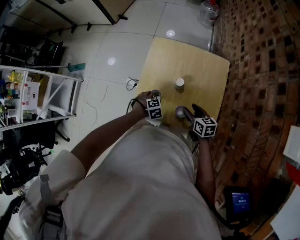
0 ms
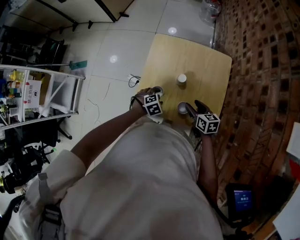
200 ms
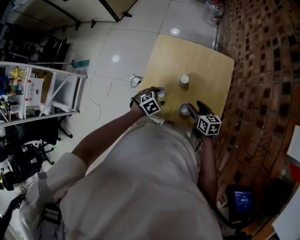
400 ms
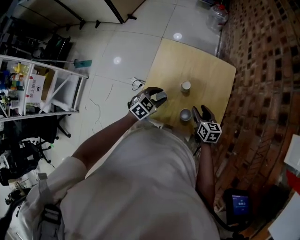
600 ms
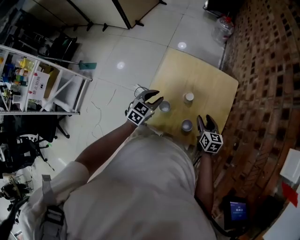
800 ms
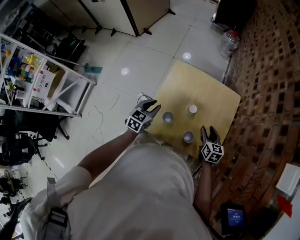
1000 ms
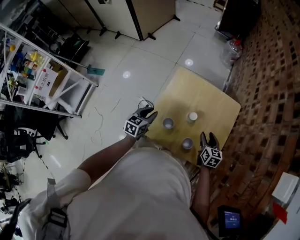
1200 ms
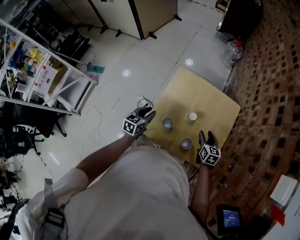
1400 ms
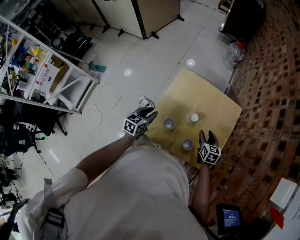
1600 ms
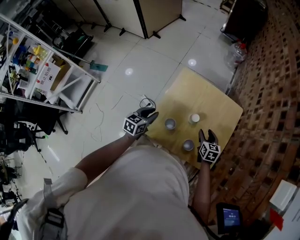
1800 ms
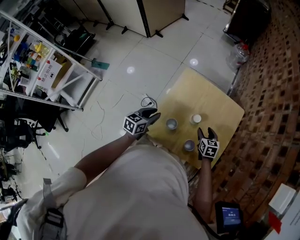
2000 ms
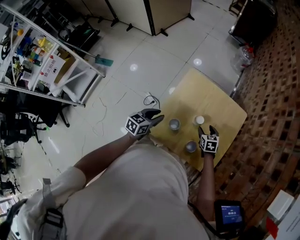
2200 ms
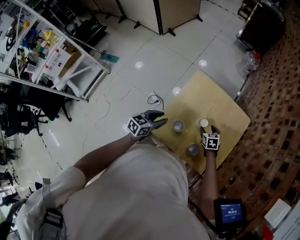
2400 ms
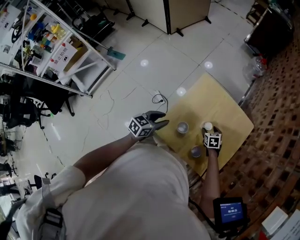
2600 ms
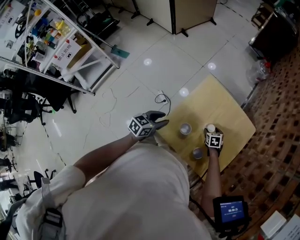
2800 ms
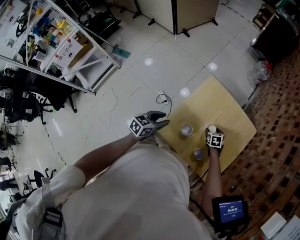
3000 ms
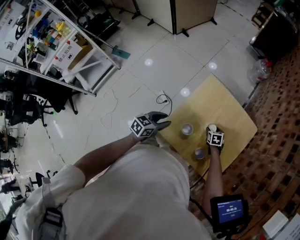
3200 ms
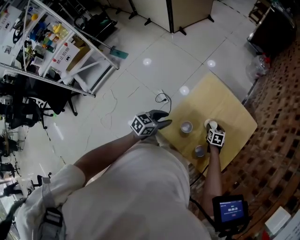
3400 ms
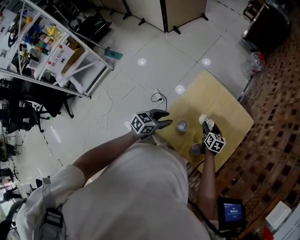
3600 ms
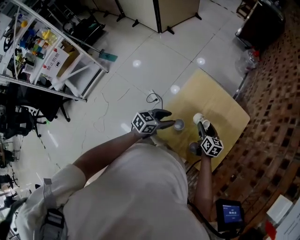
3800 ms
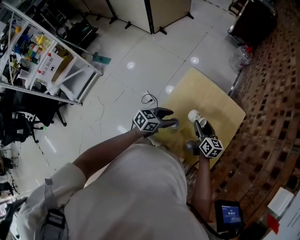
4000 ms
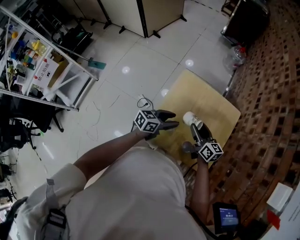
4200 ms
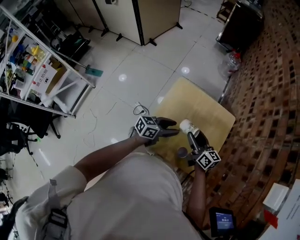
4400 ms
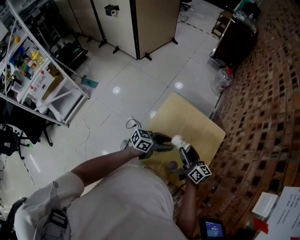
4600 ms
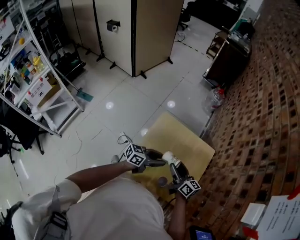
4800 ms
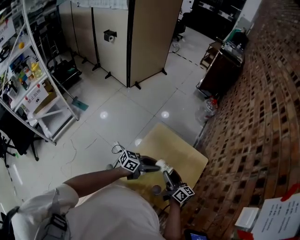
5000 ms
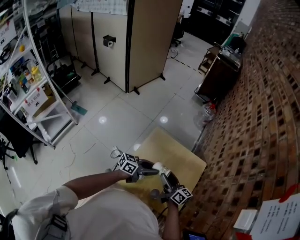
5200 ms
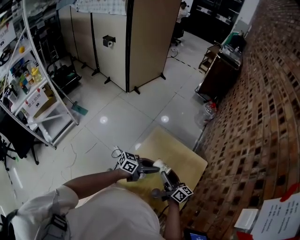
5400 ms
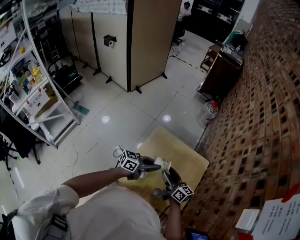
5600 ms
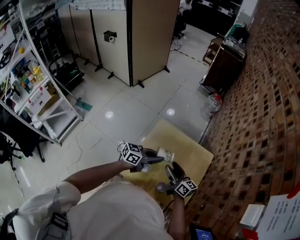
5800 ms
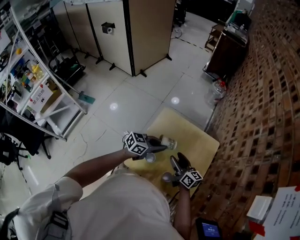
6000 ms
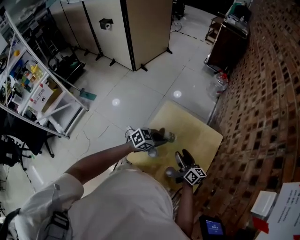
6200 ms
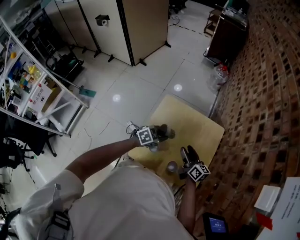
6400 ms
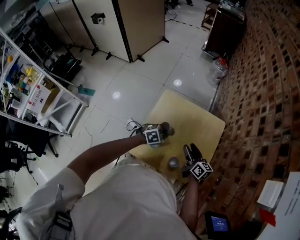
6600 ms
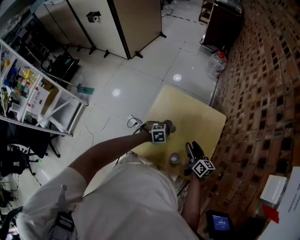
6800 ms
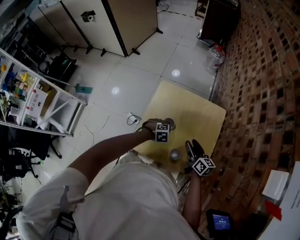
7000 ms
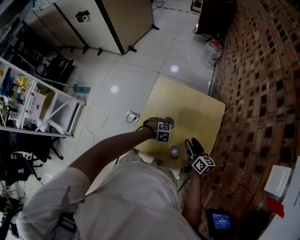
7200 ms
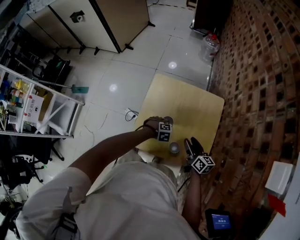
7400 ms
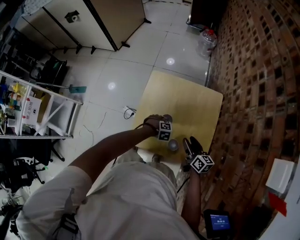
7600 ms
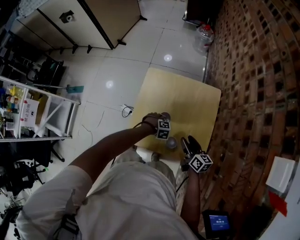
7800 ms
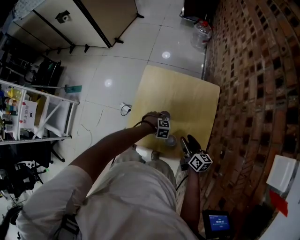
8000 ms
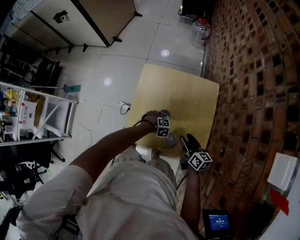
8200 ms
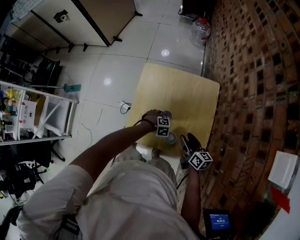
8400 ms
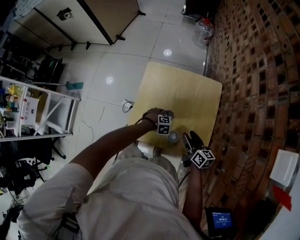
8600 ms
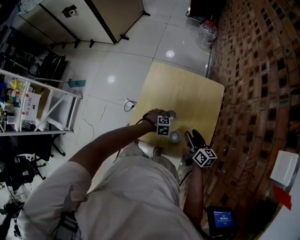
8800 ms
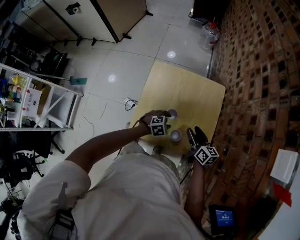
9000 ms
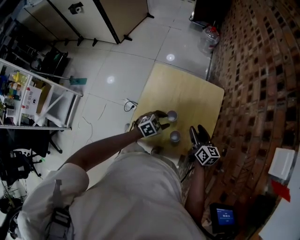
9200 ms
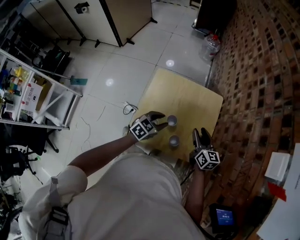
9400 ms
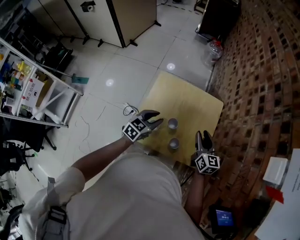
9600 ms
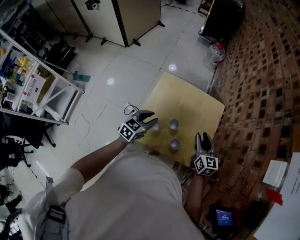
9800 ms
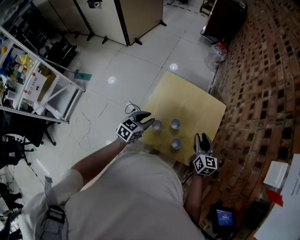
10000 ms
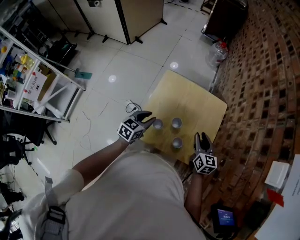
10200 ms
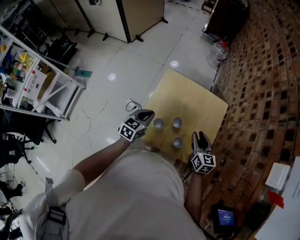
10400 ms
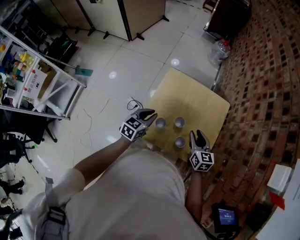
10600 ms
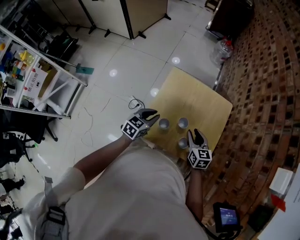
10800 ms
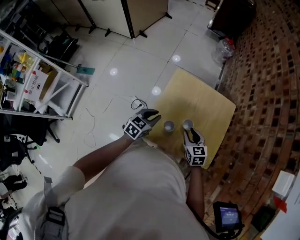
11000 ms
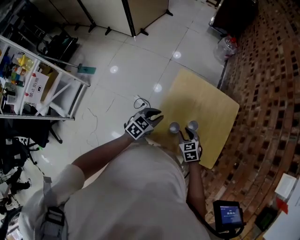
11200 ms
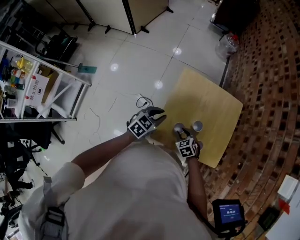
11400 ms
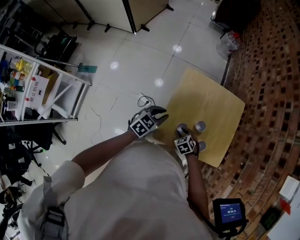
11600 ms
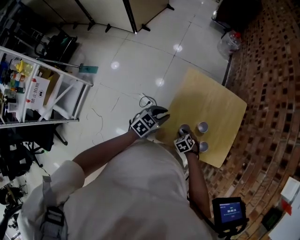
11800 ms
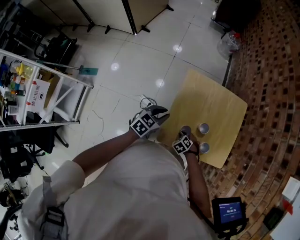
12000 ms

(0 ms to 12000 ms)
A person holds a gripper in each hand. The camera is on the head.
0 ms - 1600 ms: The left gripper shifts roughly 15 cm upward, points its fingers some 40 degrees further upward, and closes. Meanwhile the right gripper changes place by some 10 cm.
1600 ms - 3000 ms: The left gripper moves roughly 5 cm, while the right gripper goes roughly 20 cm downward, forward and to the left, and swivels approximately 30 degrees.
3000 ms - 4400 ms: The left gripper goes approximately 15 cm to the right, and turns by roughly 30 degrees. Meanwhile the right gripper shifts roughly 25 cm upward, and tips its fingers upward by about 50 degrees.
4400 ms - 6000 ms: The left gripper moves about 5 cm, and closes up.
6000 ms - 7600 ms: The left gripper shifts some 25 cm downward, and tips its fingers downward by approximately 60 degrees. Meanwhile the right gripper changes place by roughly 15 cm, and swivels roughly 20 degrees.
7600 ms - 9000 ms: The left gripper heads upward, covering approximately 5 cm, turns by some 30 degrees, and opens.
9000 ms - 10400 ms: The left gripper travels to the left and upward by about 25 cm, points its fingers approximately 30 degrees further upward, and closes up. Meanwhile the right gripper moves upward, about 5 cm, and turns by approximately 20 degrees.
10400 ms - 12000 ms: The left gripper moves approximately 10 cm, and turns by approximately 20 degrees. Meanwhile the right gripper is displaced downward by approximately 25 cm, and tips its fingers downward by about 50 degrees.

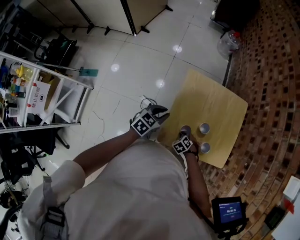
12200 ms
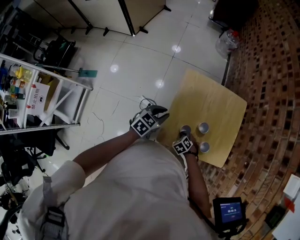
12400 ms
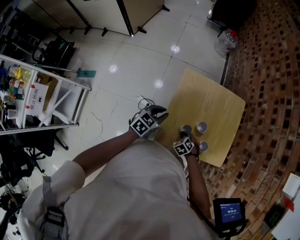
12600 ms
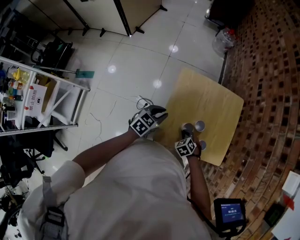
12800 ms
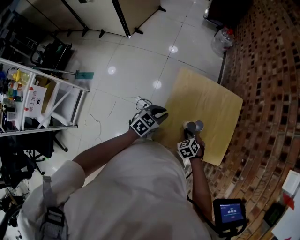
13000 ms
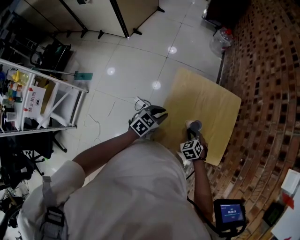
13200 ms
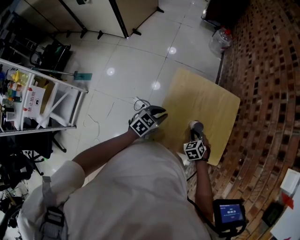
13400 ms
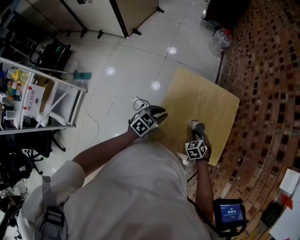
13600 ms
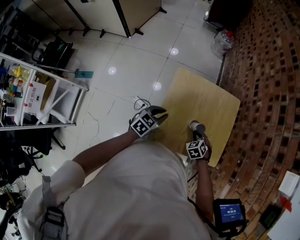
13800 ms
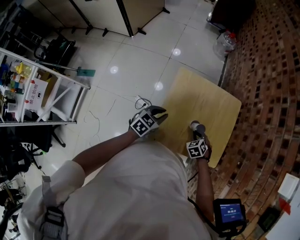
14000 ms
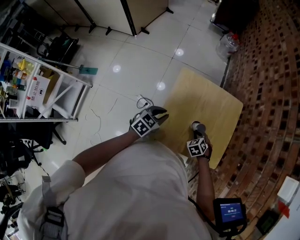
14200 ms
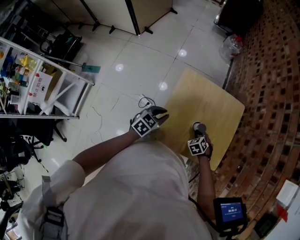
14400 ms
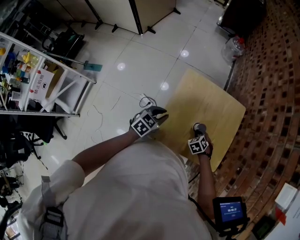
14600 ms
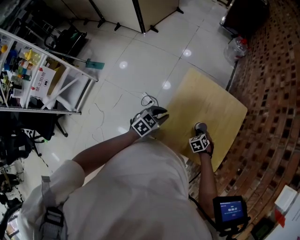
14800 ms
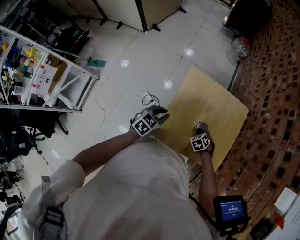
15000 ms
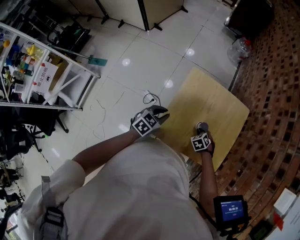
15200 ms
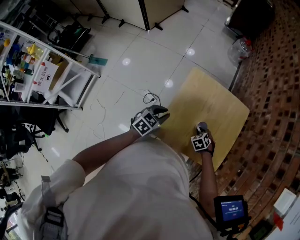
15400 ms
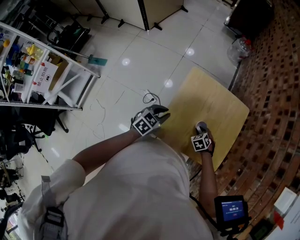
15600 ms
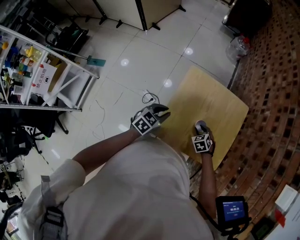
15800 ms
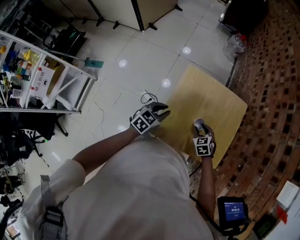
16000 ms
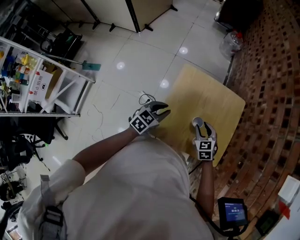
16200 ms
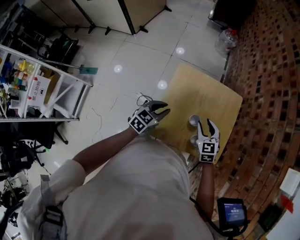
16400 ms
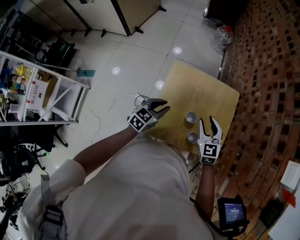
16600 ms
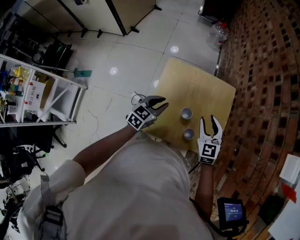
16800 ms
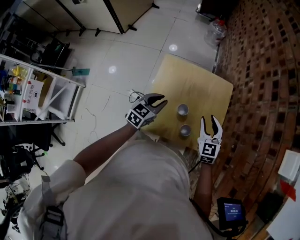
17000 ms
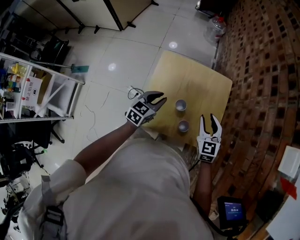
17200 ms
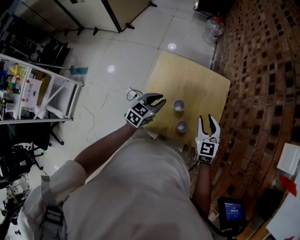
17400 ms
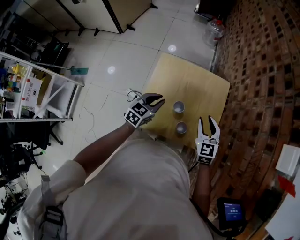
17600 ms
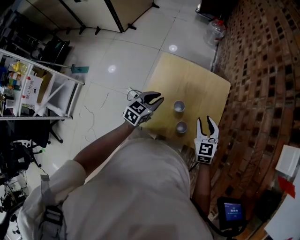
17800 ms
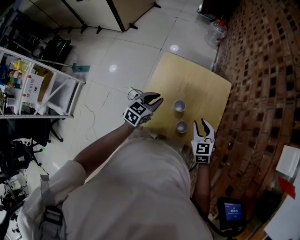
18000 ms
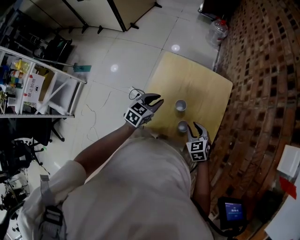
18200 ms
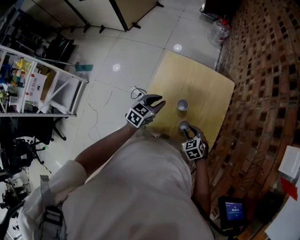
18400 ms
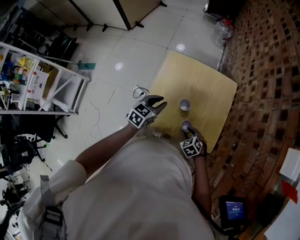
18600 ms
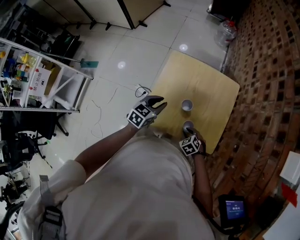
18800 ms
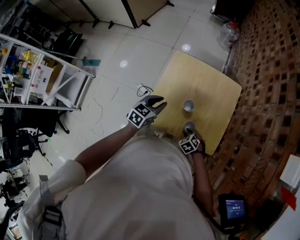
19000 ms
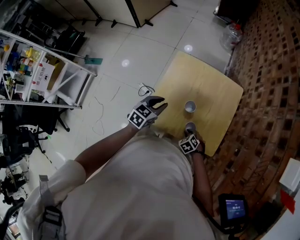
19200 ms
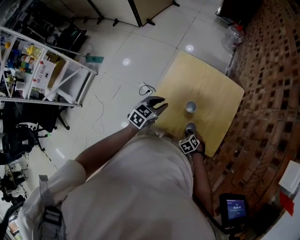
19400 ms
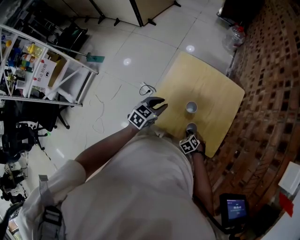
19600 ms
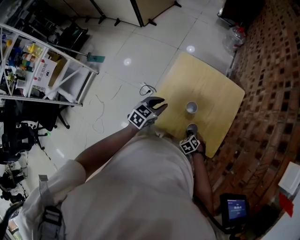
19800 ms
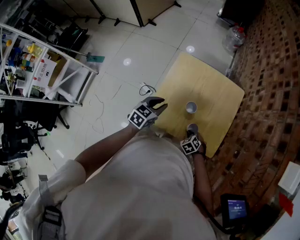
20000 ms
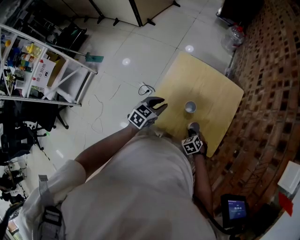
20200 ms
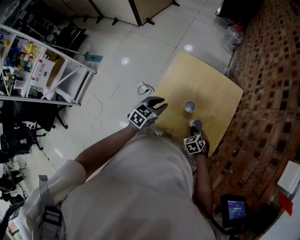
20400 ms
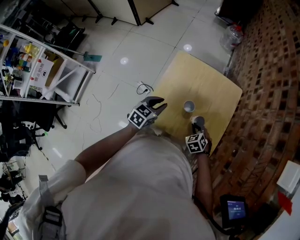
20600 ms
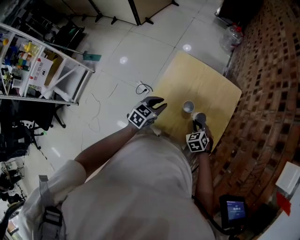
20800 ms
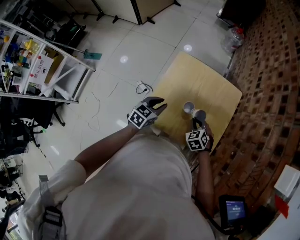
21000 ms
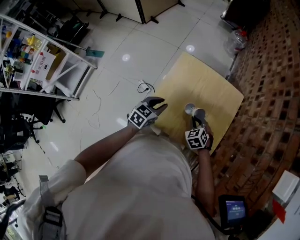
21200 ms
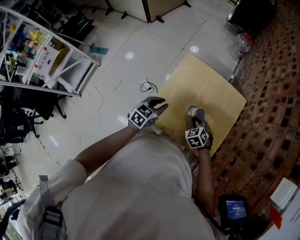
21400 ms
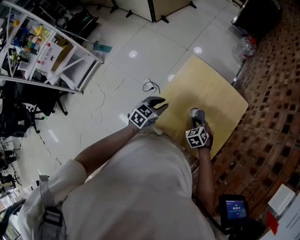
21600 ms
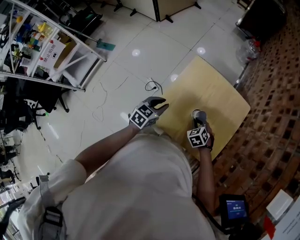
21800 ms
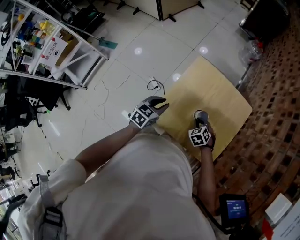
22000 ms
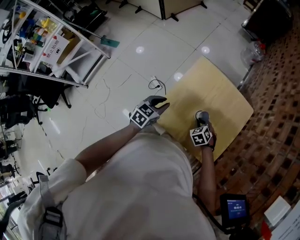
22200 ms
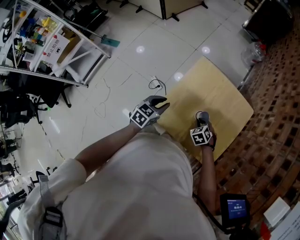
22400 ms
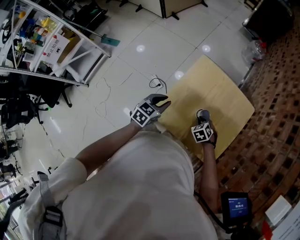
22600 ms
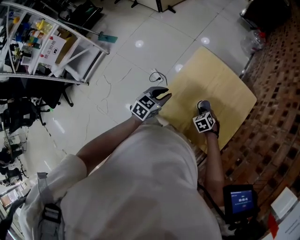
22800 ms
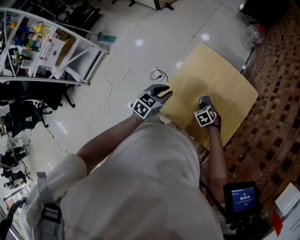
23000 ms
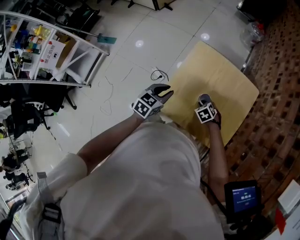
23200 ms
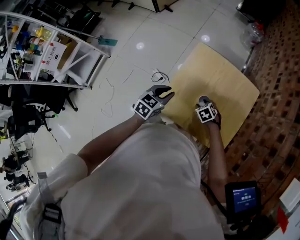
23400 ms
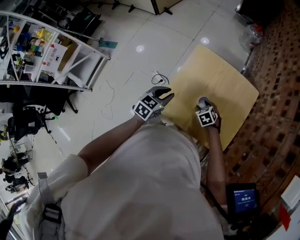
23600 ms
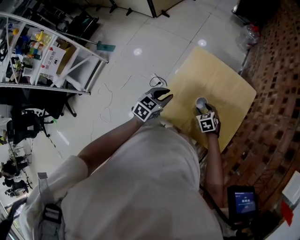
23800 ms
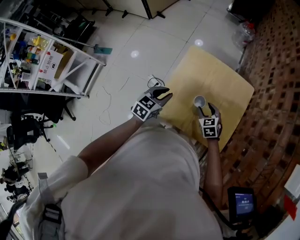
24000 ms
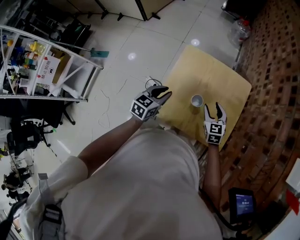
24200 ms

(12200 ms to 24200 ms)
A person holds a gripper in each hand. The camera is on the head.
12200 ms - 13800 ms: The left gripper ends up roughly 5 cm from where it was, while the right gripper ends up roughly 15 cm from where it was.
13800 ms - 15200 ms: The right gripper is displaced downward by some 5 cm.
15200 ms - 16600 ms: The left gripper travels to the right by roughly 5 cm; the right gripper heads upward, covering roughly 25 cm, tips its fingers upward by about 50 degrees, and opens.
16600 ms - 18200 ms: The right gripper is displaced downward, backward and to the right by about 15 cm, and rotates some 20 degrees. Meanwhile the left gripper changes place by roughly 5 cm.
18200 ms - 19800 ms: The right gripper heads downward, covering about 20 cm, and changes its angle by approximately 30 degrees.
19800 ms - 21200 ms: The right gripper goes roughly 15 cm upward and forward.
21200 ms - 22600 ms: The right gripper travels downward by about 10 cm; the left gripper travels to the left by about 5 cm.
22600 ms - 24200 ms: The right gripper moves upward and to the right, some 15 cm, tips its fingers upward by about 30 degrees, and opens up.
